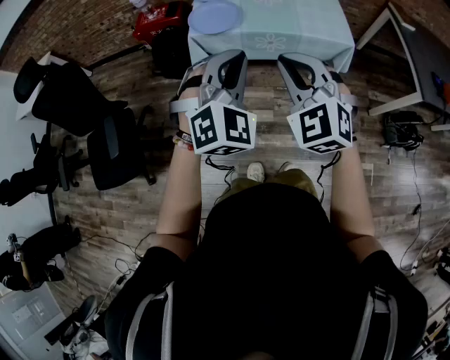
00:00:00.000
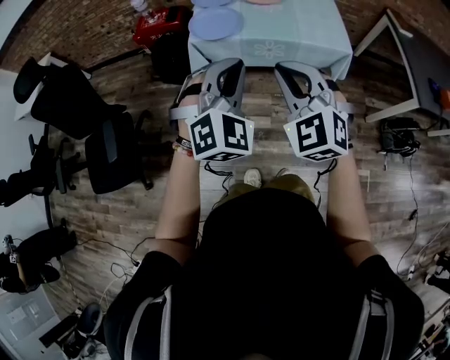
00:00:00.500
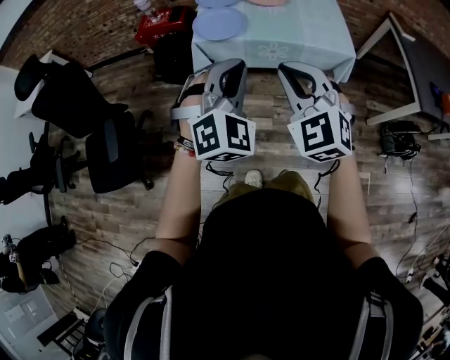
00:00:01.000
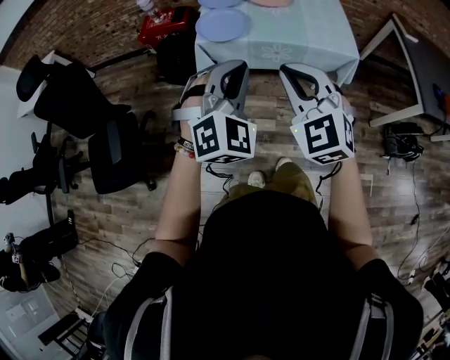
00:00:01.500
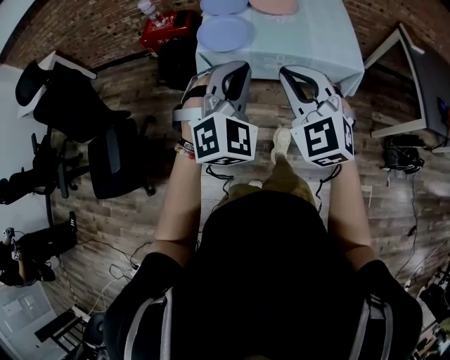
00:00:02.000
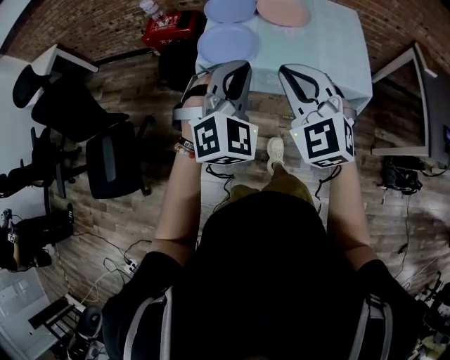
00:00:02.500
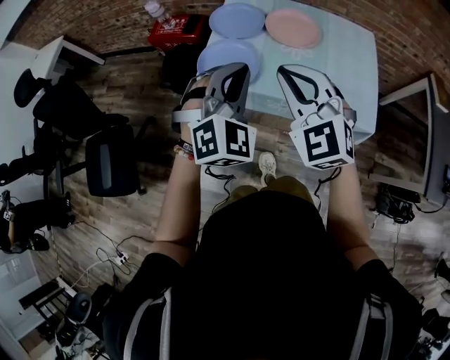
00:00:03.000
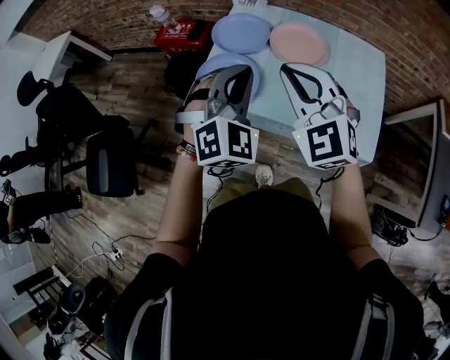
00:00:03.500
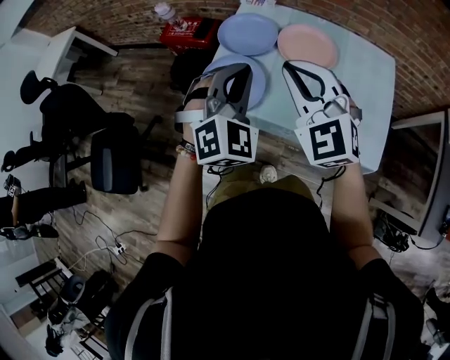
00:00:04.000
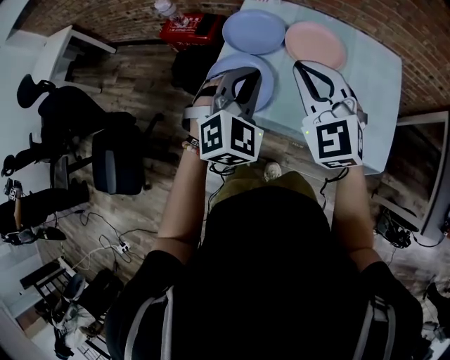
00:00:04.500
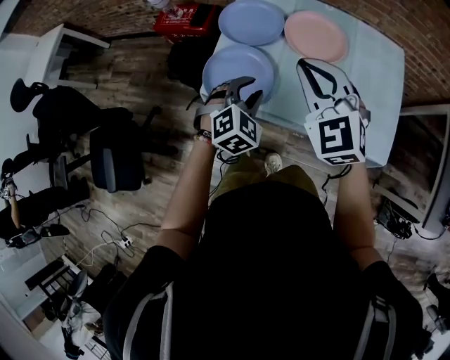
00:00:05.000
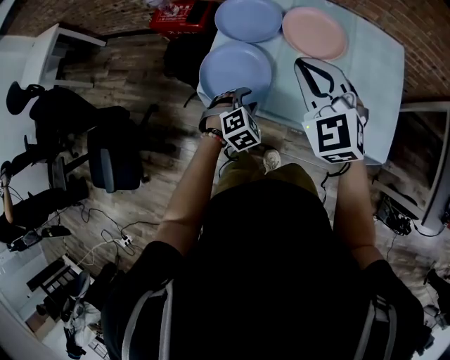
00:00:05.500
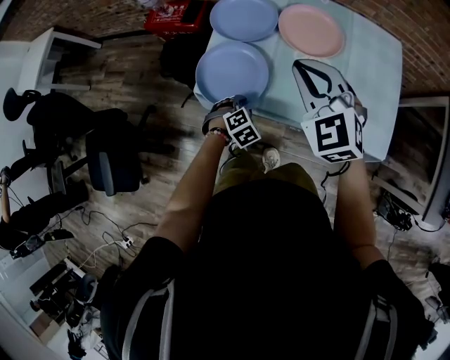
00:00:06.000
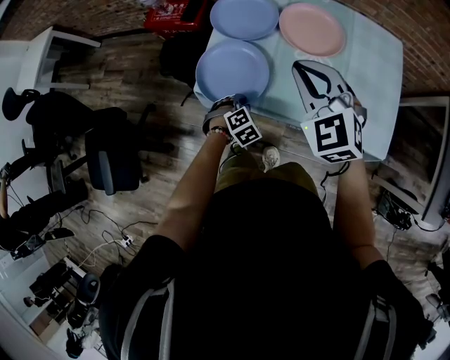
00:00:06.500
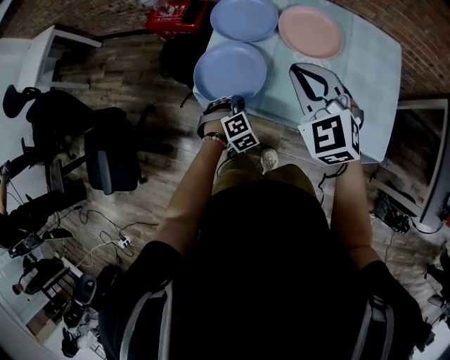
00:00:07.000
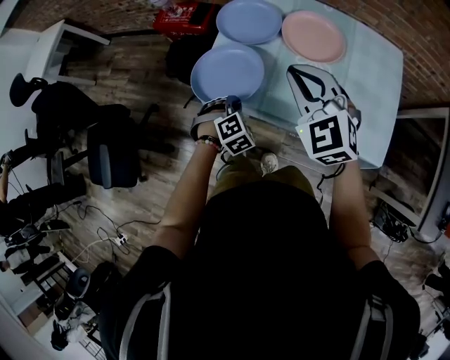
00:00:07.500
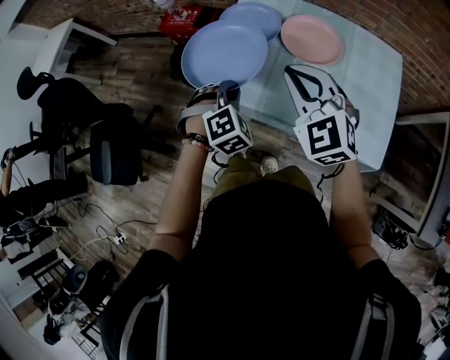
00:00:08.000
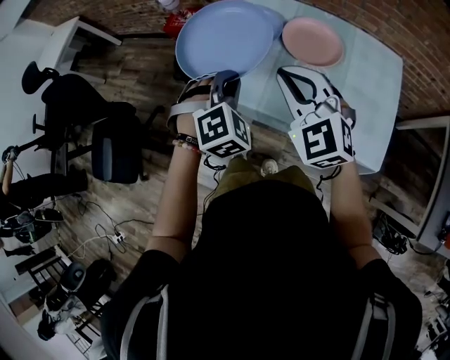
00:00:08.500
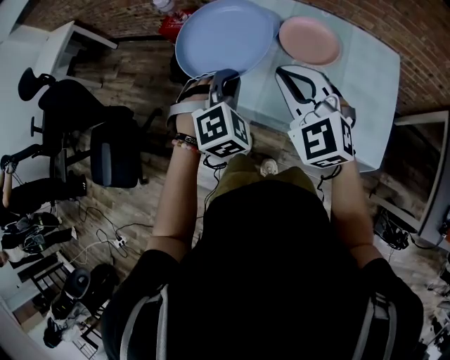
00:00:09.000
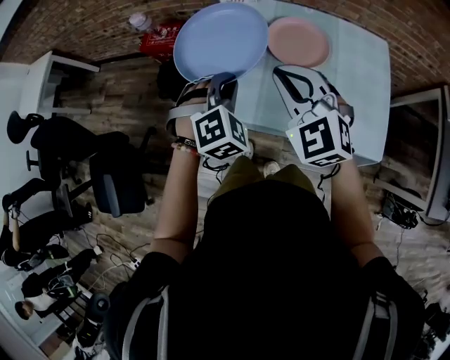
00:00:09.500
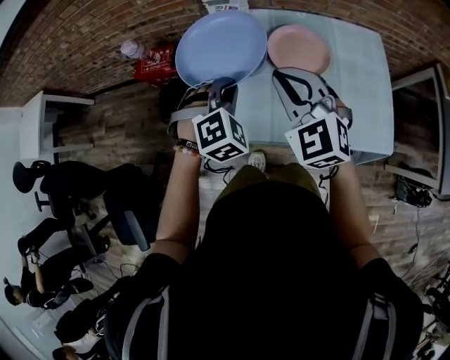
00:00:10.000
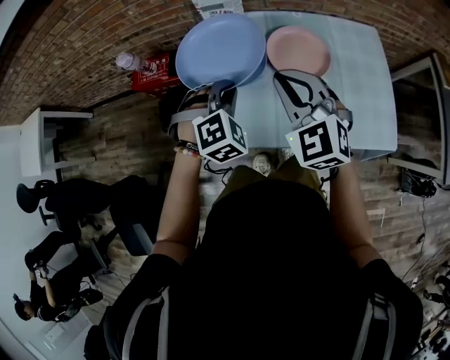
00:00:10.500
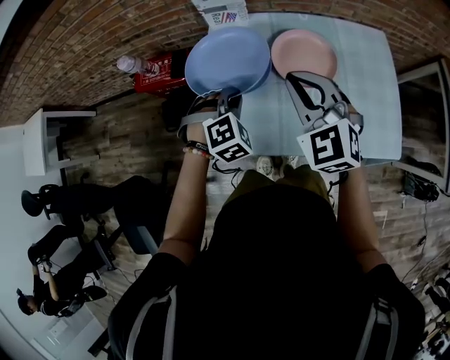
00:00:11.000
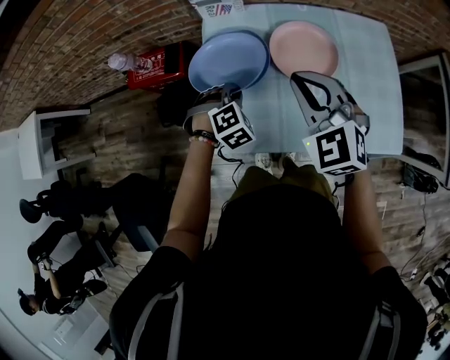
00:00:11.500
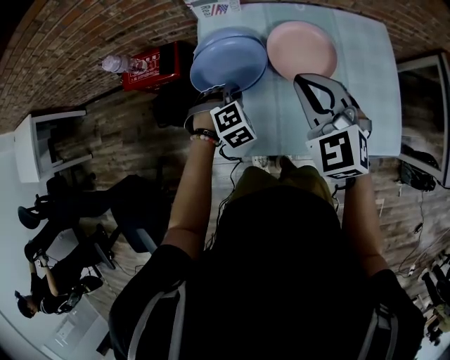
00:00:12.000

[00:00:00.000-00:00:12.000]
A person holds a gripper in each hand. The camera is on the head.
00:00:00.000 to 00:00:02.000: The grippers both shift forward by about 10 cm.
00:00:02.000 to 00:00:04.000: Both grippers are carried forward, roughly 40 cm.
00:00:04.000 to 00:00:06.000: The left gripper goes some 35 cm downward, tilts its fingers about 50 degrees downward, and opens its fingers, while the right gripper travels downward and forward by about 10 cm.
00:00:06.000 to 00:00:08.000: The left gripper is displaced upward by approximately 20 cm, changes its angle by roughly 20 degrees, and closes.
00:00:08.000 to 00:00:10.000: The left gripper travels forward and upward by approximately 15 cm, and turns by about 20 degrees; the right gripper travels forward by roughly 15 cm.
00:00:10.000 to 00:00:12.000: The left gripper travels downward and forward by about 20 cm, while the right gripper moves forward, about 10 cm.

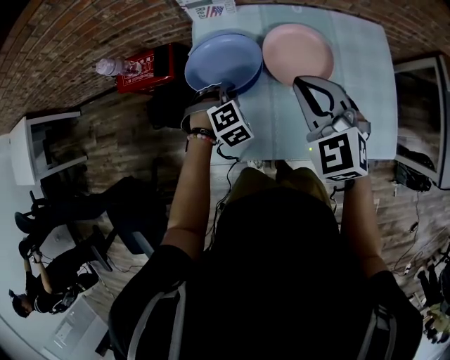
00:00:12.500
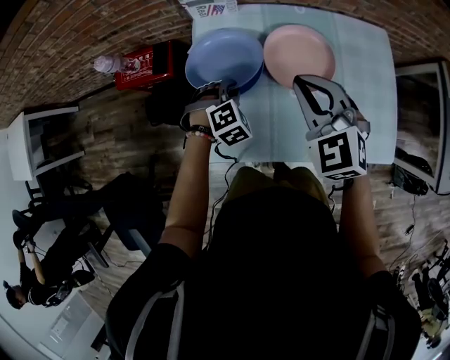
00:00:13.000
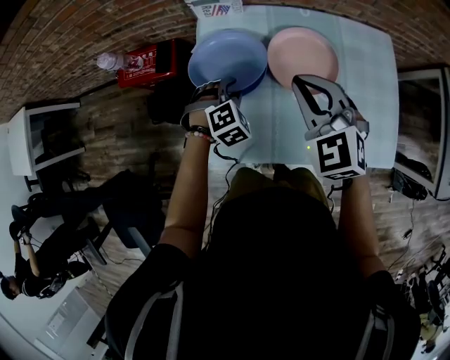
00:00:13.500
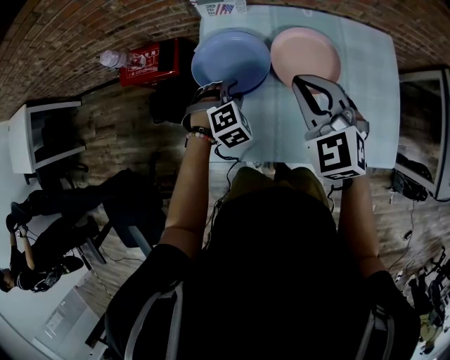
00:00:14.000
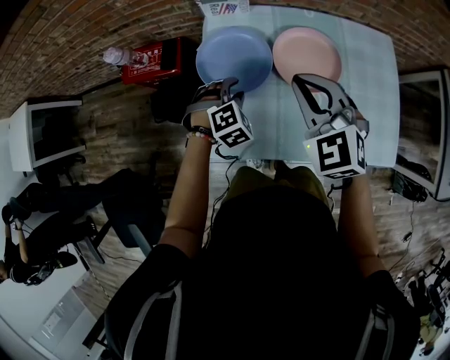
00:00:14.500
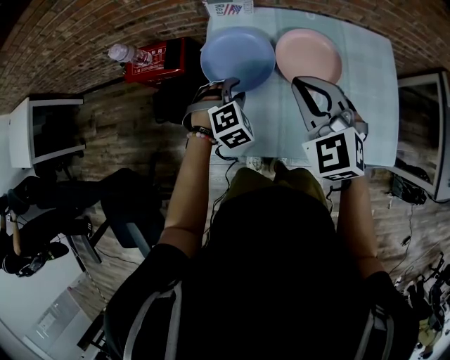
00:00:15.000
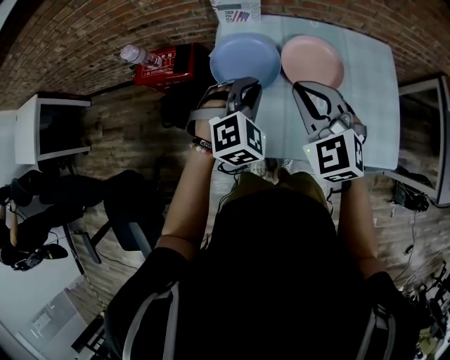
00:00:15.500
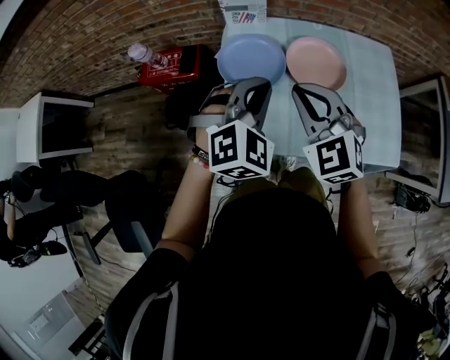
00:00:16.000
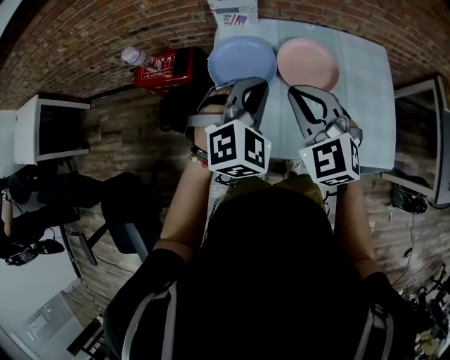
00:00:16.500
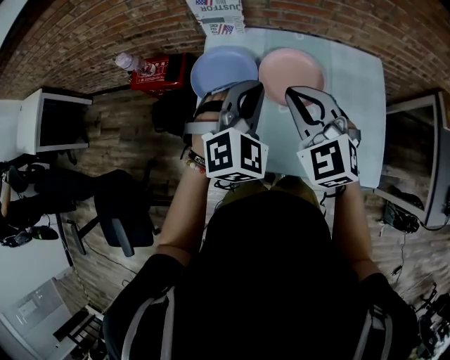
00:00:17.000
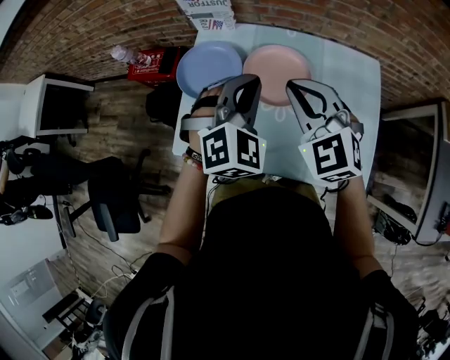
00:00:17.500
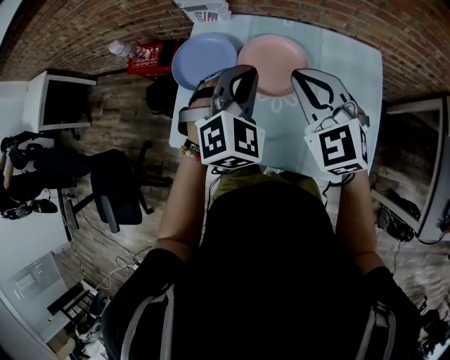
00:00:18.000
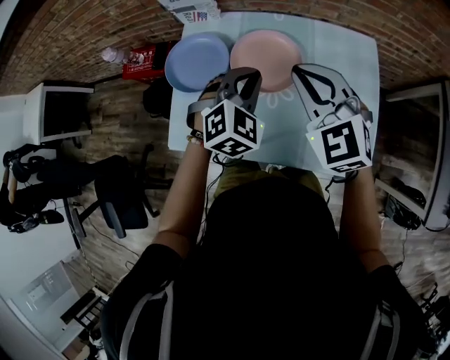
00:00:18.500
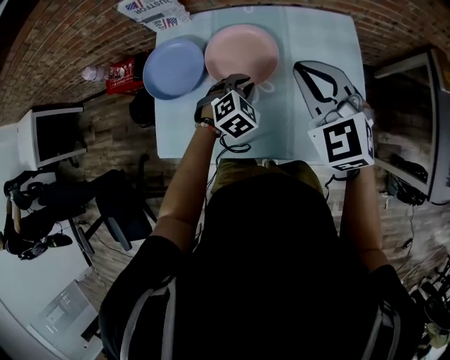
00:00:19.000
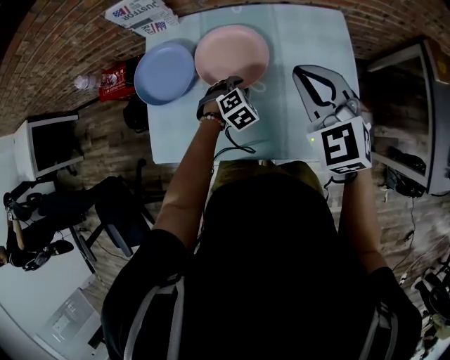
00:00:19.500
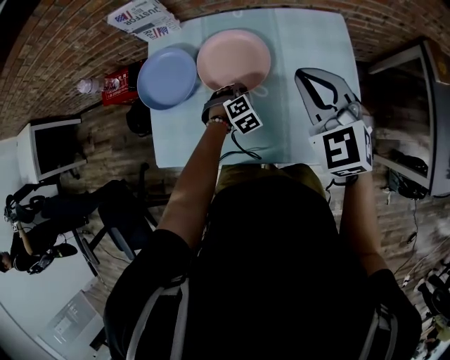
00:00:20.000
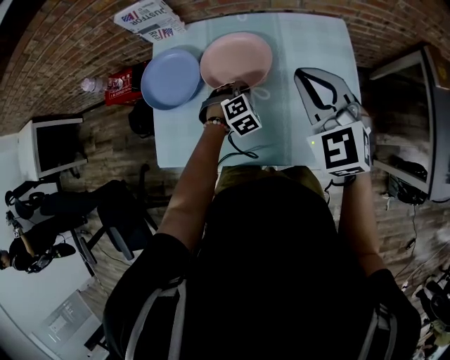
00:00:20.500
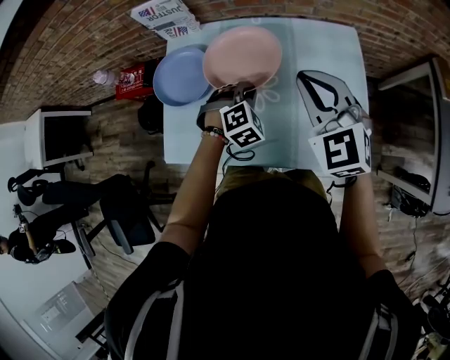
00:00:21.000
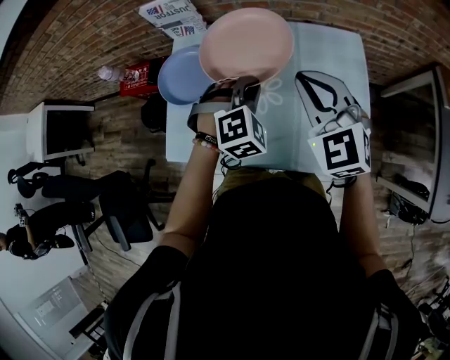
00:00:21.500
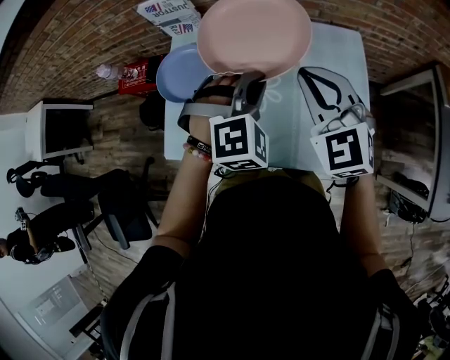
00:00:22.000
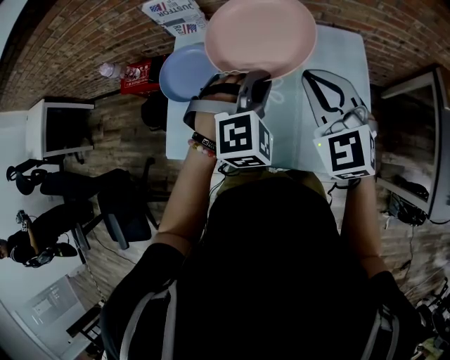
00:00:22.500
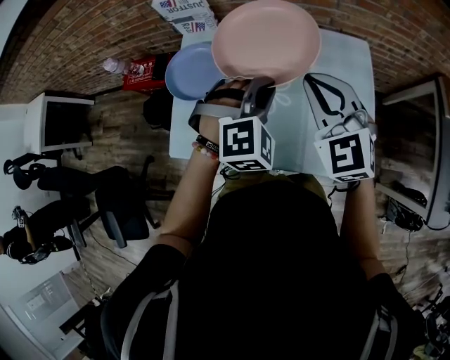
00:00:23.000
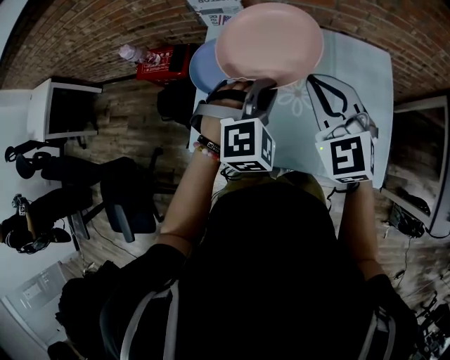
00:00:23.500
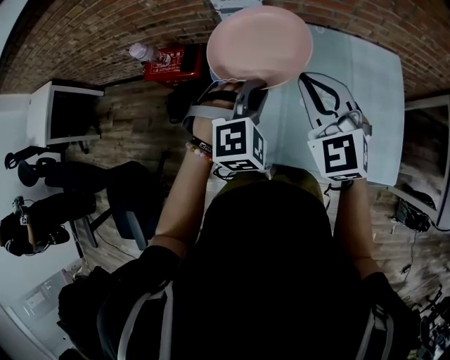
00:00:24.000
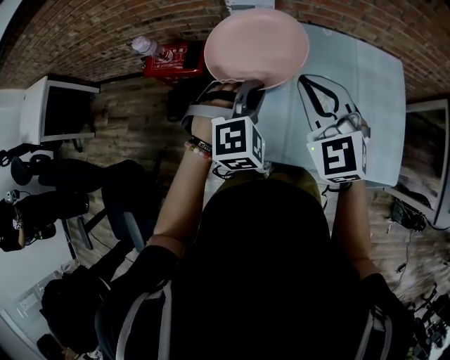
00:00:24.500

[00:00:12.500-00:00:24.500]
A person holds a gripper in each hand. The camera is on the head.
00:00:12.500 to 00:00:14.500: The left gripper opens.
00:00:14.500 to 00:00:16.500: The left gripper is displaced upward by approximately 20 cm, turns by approximately 30 degrees, and closes up, while the right gripper travels backward by about 10 cm.
00:00:16.500 to 00:00:18.500: The two grippers go approximately 25 cm to the right.
00:00:18.500 to 00:00:20.500: The right gripper shifts about 10 cm to the right. The left gripper heads downward, covering about 20 cm, turns by about 30 degrees, and opens, then closes once more.
00:00:20.500 to 00:00:22.500: The left gripper heads upward, covering roughly 25 cm, and rotates about 20 degrees.
00:00:22.500 to 00:00:24.500: The grippers both shift to the left by about 30 cm.

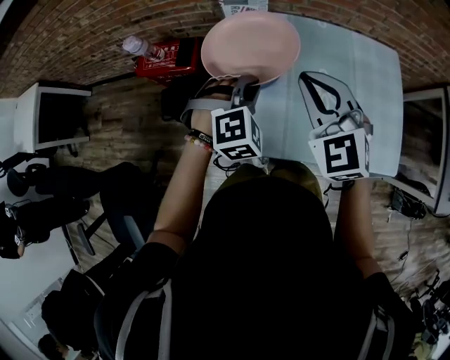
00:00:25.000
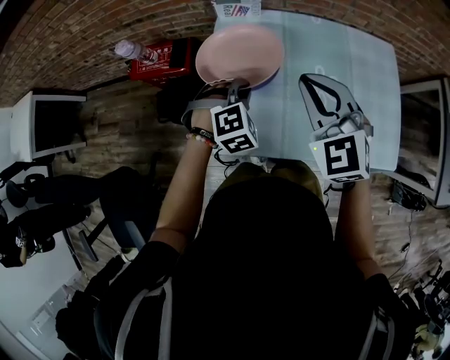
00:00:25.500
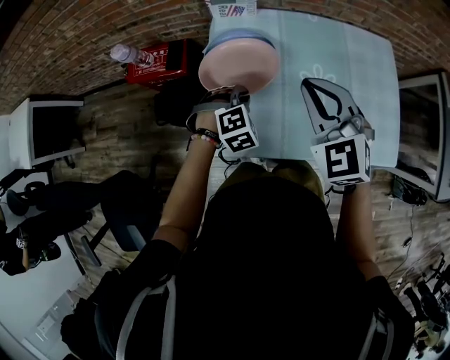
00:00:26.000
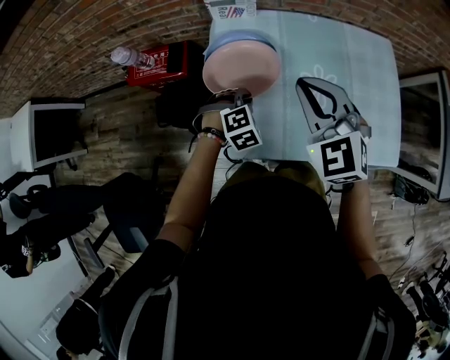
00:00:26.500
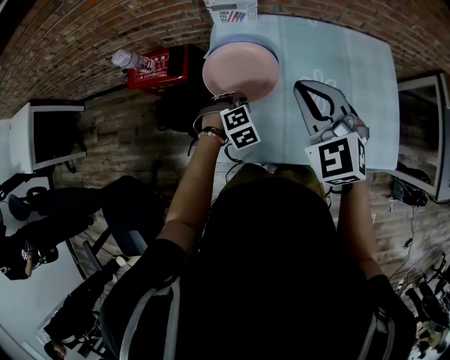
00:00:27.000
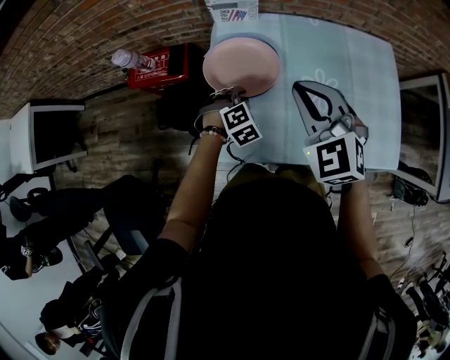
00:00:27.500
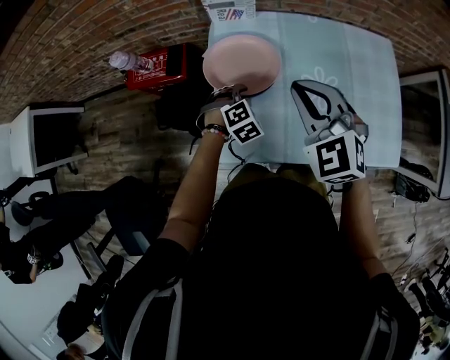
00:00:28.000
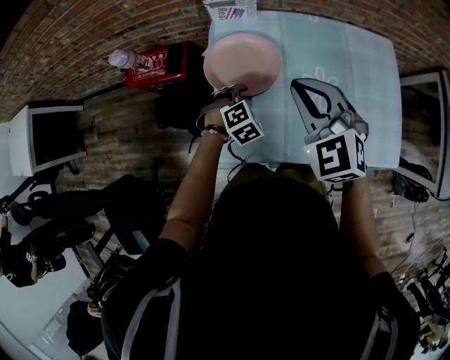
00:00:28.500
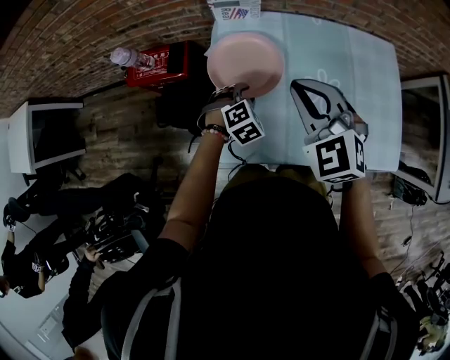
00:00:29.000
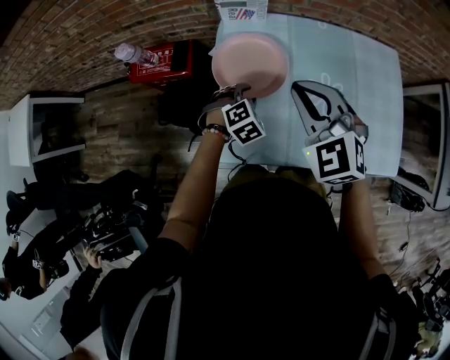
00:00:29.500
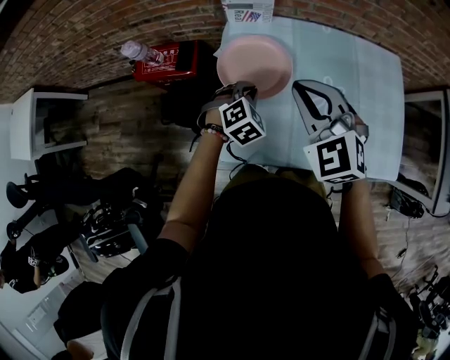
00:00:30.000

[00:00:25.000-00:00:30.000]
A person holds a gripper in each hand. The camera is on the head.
00:00:25.000 to 00:00:27.500: The left gripper is displaced downward by some 15 cm.
00:00:27.500 to 00:00:30.000: There are only small adjustments of the grippers.
